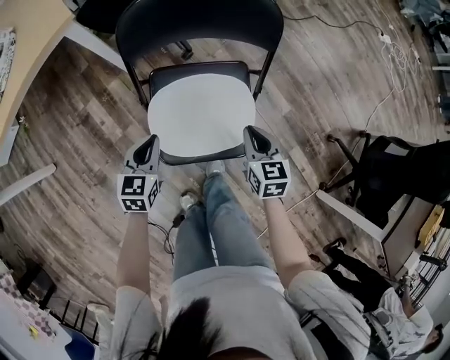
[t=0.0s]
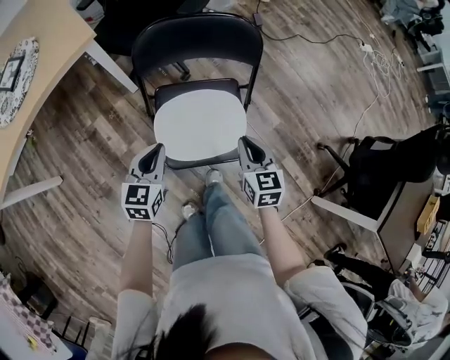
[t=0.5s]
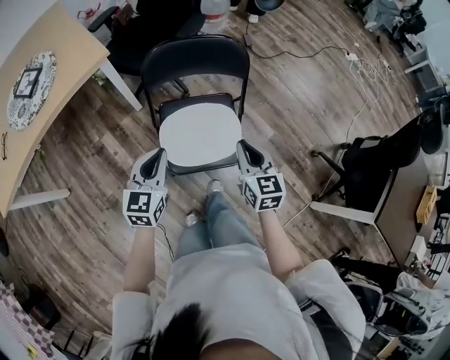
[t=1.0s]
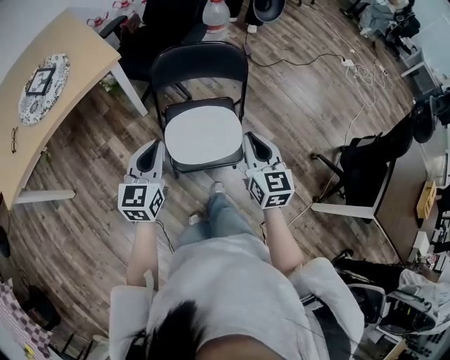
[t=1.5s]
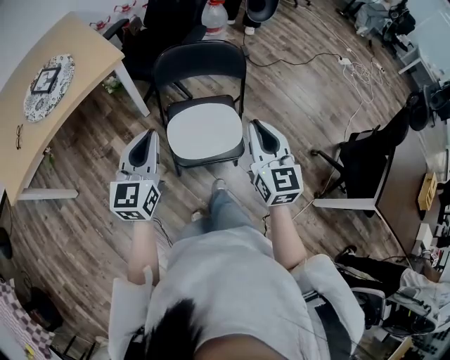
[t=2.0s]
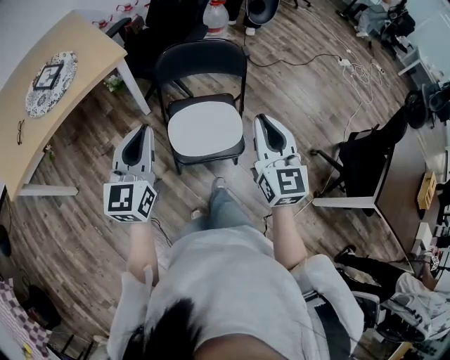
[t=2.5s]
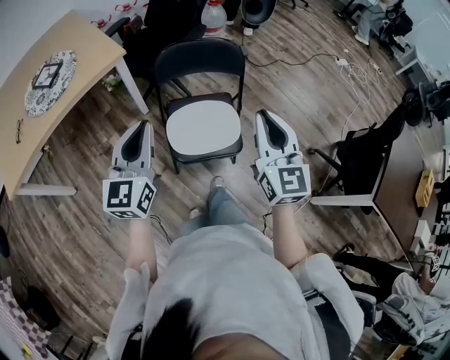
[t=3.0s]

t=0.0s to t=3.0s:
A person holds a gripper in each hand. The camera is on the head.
t=0.0s to t=1.5s: Both grippers move upward, some 30 cm. The left gripper turns by roughly 20 degrees; the right gripper changes its angle by approximately 20 degrees.
t=1.5s to t=3.0s: Both grippers travel together upward and backward, about 15 cm.

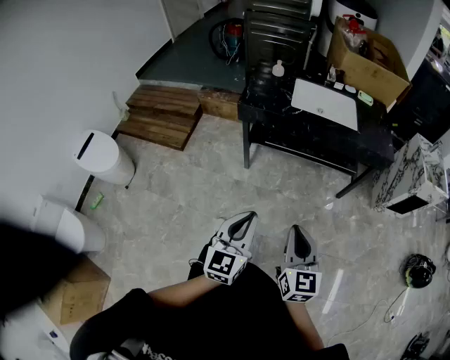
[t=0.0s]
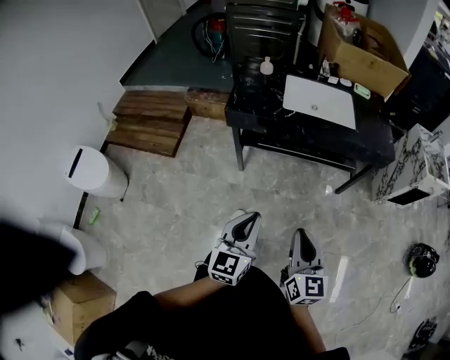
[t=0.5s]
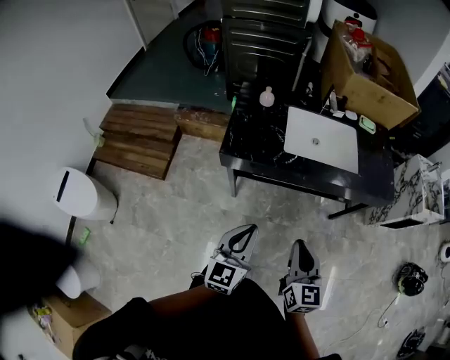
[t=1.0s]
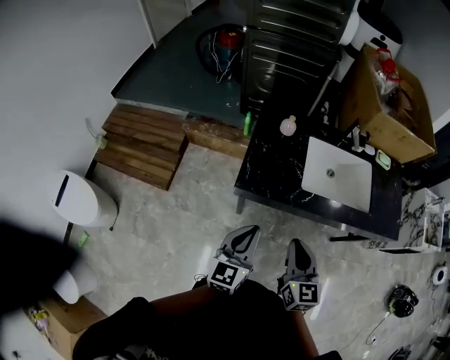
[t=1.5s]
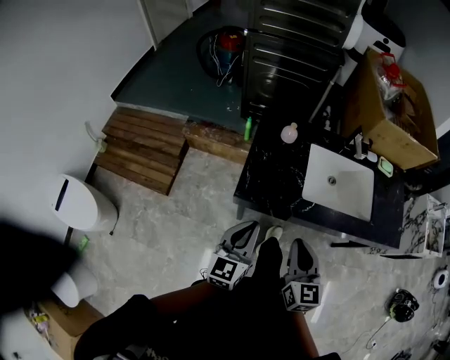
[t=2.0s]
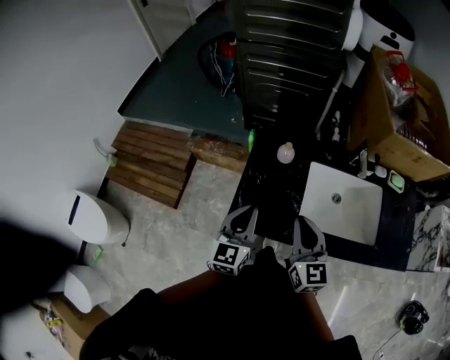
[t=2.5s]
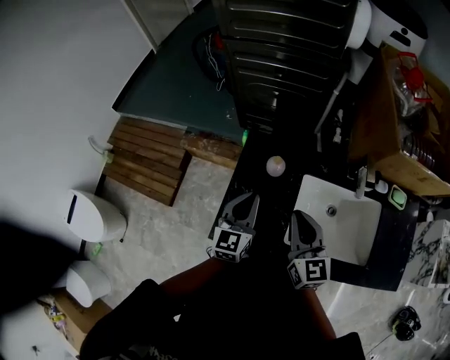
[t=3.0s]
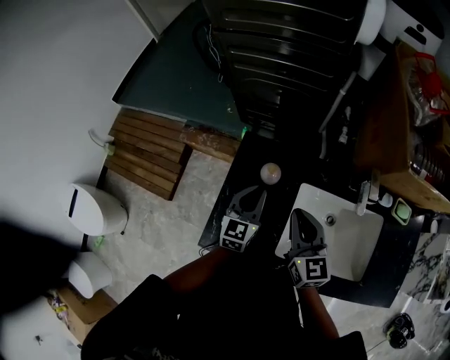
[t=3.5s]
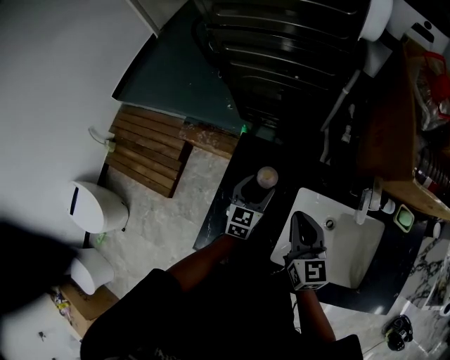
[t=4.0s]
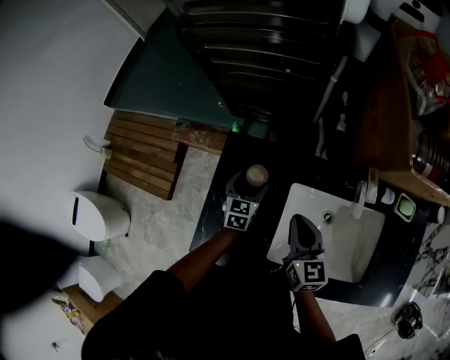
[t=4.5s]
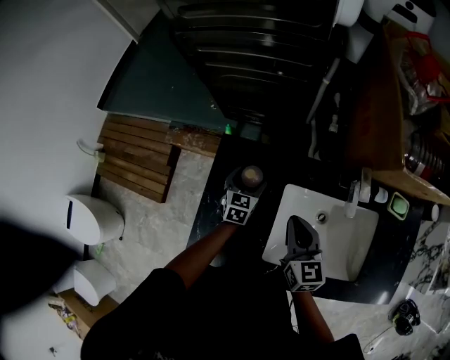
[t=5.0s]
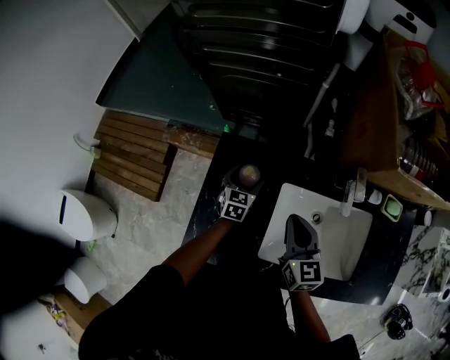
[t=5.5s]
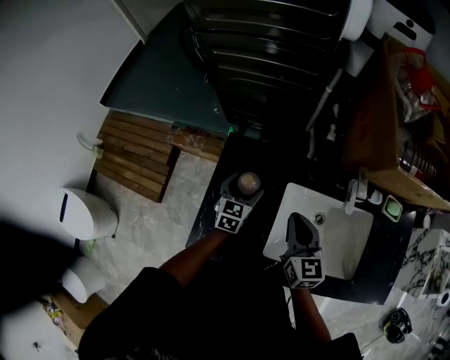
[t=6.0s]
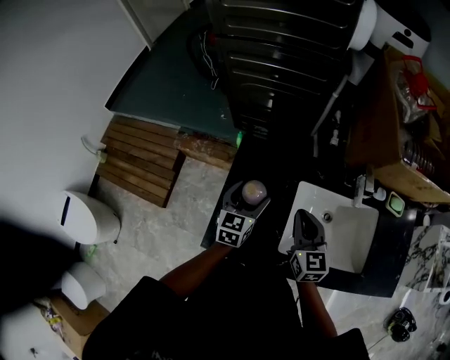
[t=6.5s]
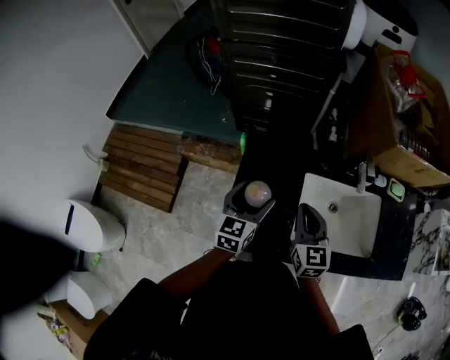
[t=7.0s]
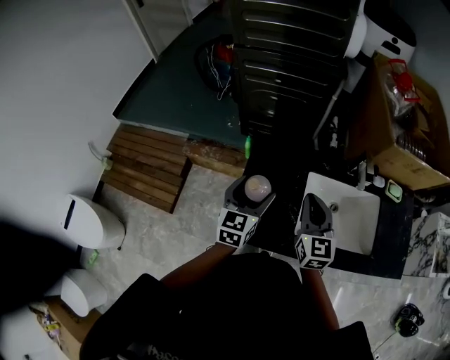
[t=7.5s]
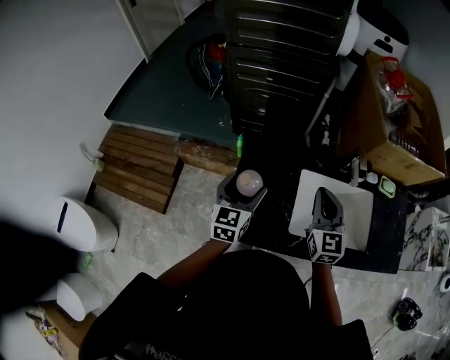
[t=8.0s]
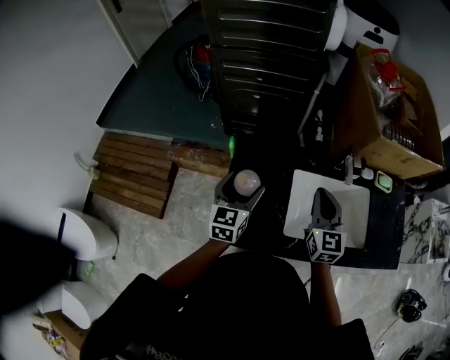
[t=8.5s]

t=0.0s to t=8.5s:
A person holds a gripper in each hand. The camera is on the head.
t=0.0s to t=2.0s: The pair of grippers is taken forward, approximately 50 cm.
t=2.0s to t=4.0s: The two grippers go about 40 cm forward. The left gripper opens its fingers.
t=4.0s to t=6.5s: The left gripper shifts about 10 cm backward and upward.
t=6.5s to t=8.5s: The grippers both shift upward by about 10 cm.

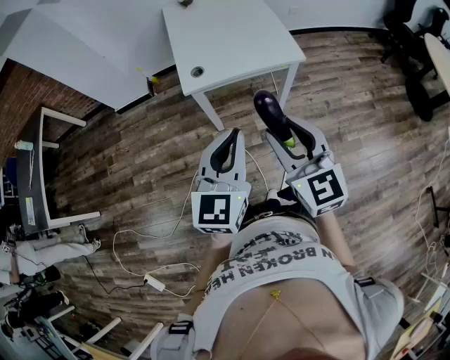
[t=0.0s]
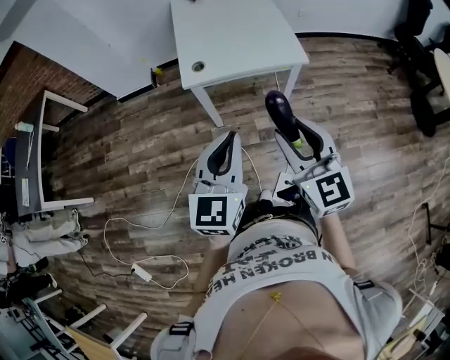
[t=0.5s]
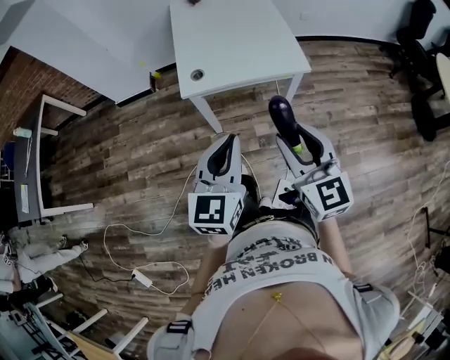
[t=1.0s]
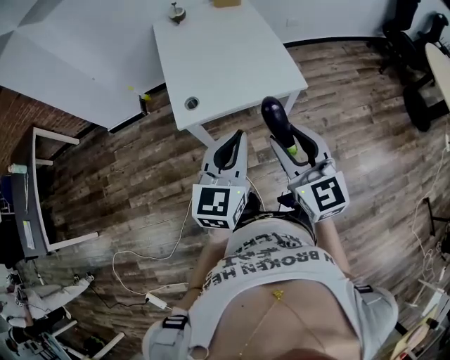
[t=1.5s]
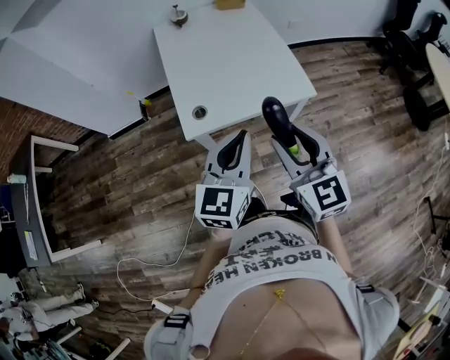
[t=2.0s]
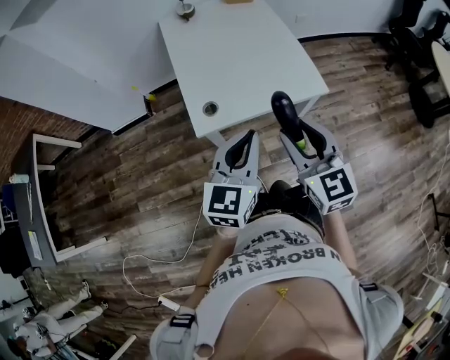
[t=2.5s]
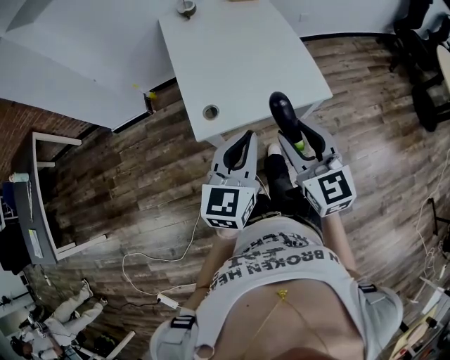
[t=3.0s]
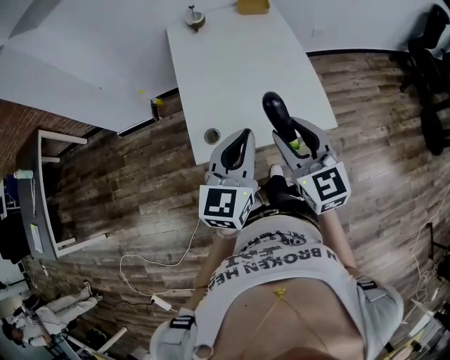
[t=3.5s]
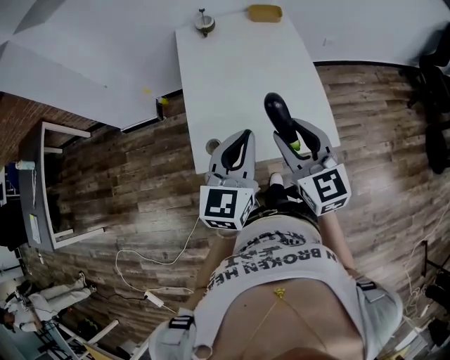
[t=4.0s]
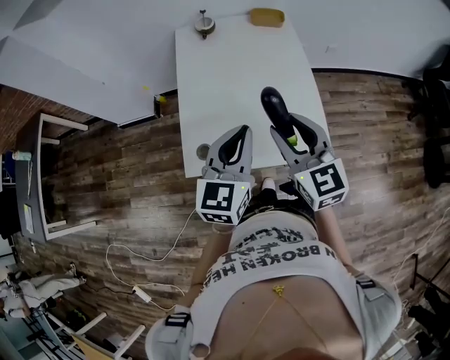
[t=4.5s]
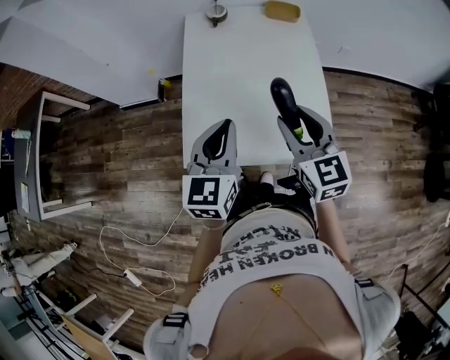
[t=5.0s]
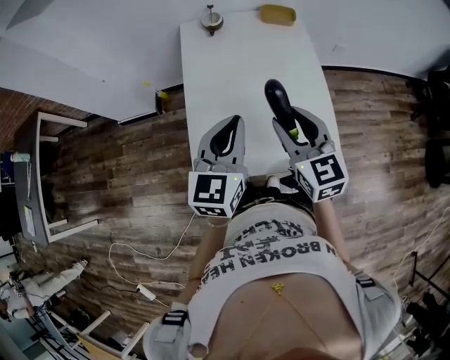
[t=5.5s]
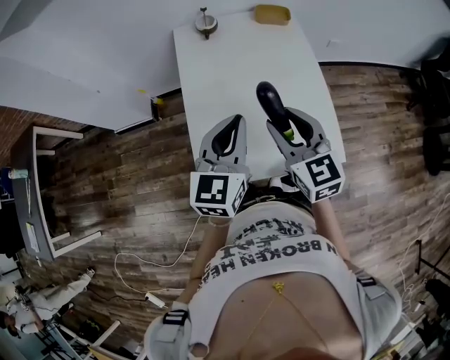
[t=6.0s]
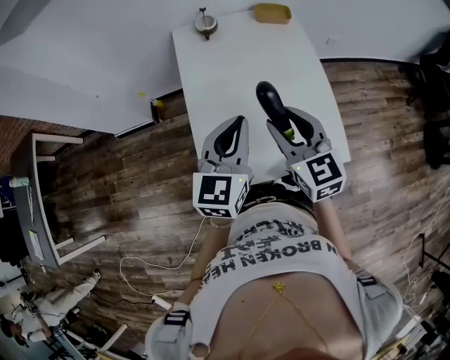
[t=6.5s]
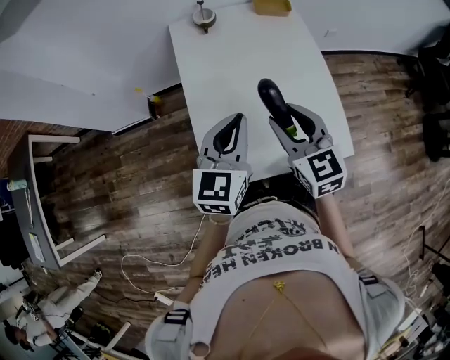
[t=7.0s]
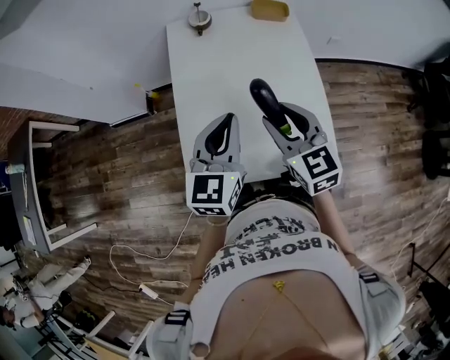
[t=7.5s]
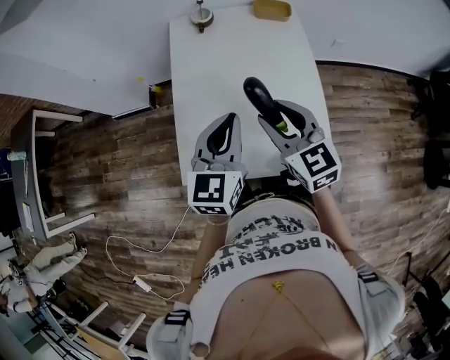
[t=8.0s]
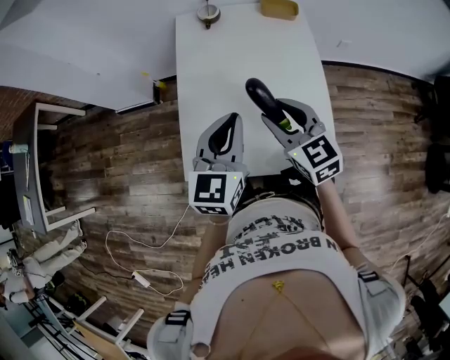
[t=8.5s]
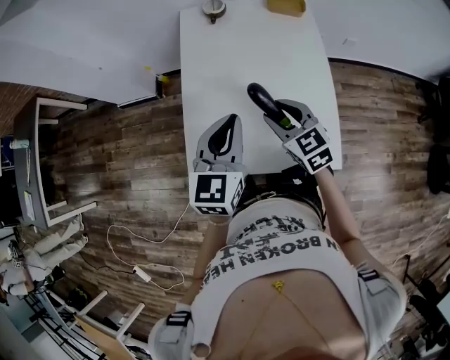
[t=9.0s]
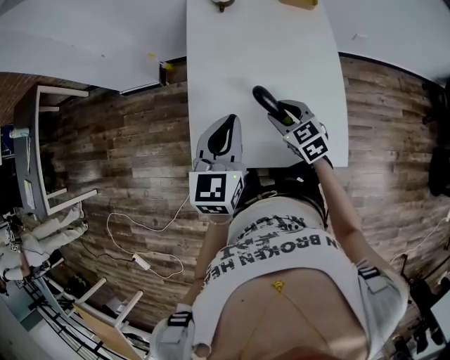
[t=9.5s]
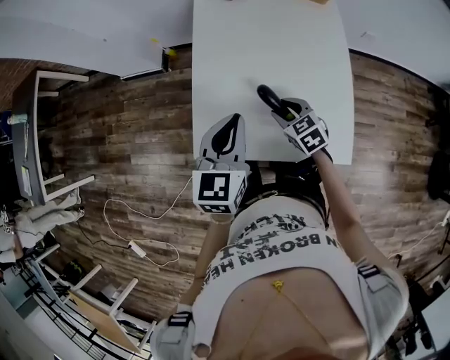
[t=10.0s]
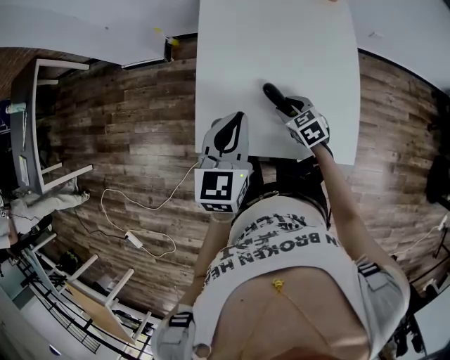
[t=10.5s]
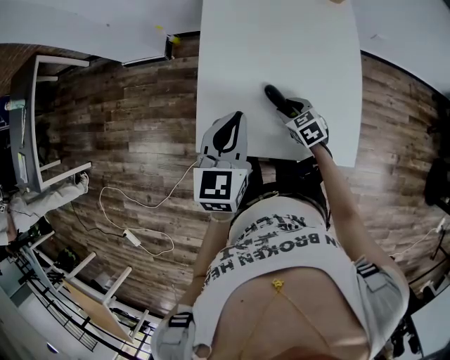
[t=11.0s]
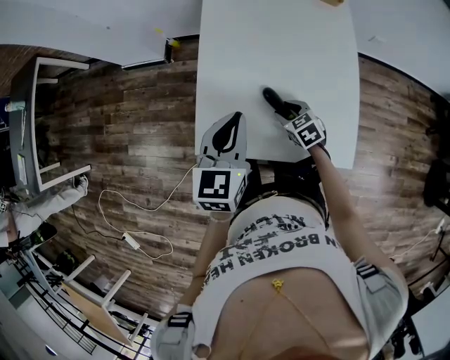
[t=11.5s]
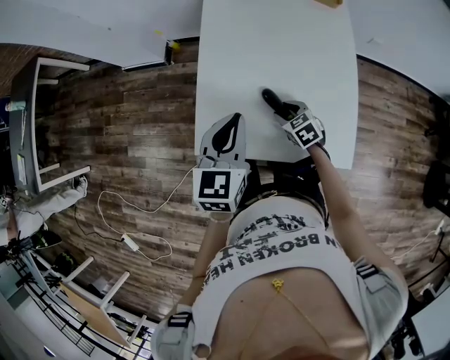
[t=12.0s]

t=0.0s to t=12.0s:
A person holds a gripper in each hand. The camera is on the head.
t=0.0s to t=2.0s: The grippers both shift forward by some 20 cm.
t=2.0s to t=4.0s: The two grippers go about 20 cm forward.
t=4.0s to t=6.0s: The grippers both shift forward by some 10 cm.
t=6.0s to t=8.0s: The right gripper shifts by about 5 cm. Meanwhile the left gripper travels to the right by roughly 5 cm.
t=8.0s to t=10.0s: The left gripper travels to the left and downward by approximately 10 cm; the right gripper is displaced downward by some 25 cm, and turns by some 30 degrees.
t=10.0s to t=12.0s: The right gripper heads downward, covering some 5 cm.

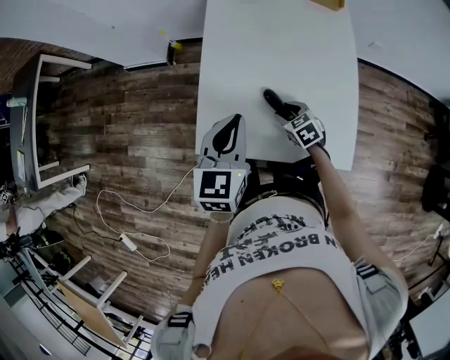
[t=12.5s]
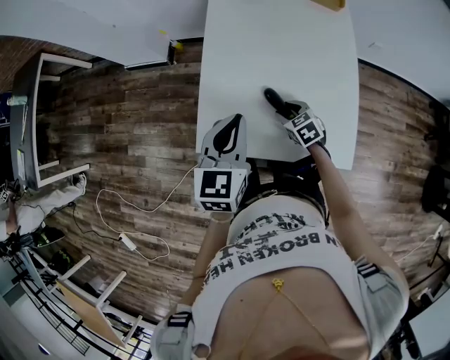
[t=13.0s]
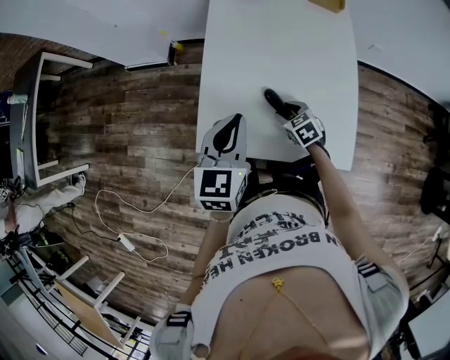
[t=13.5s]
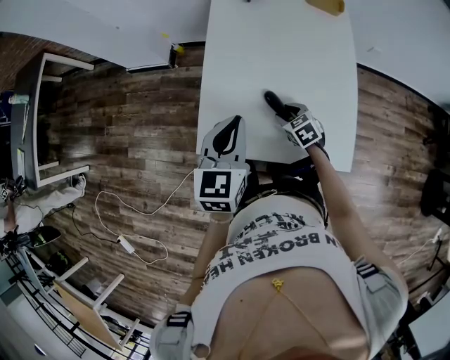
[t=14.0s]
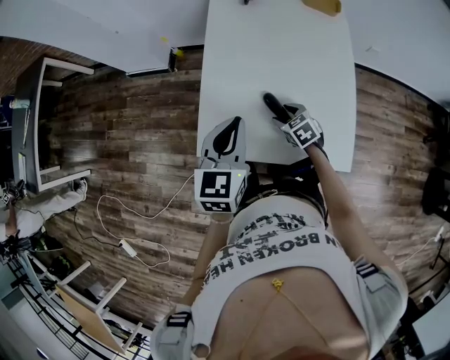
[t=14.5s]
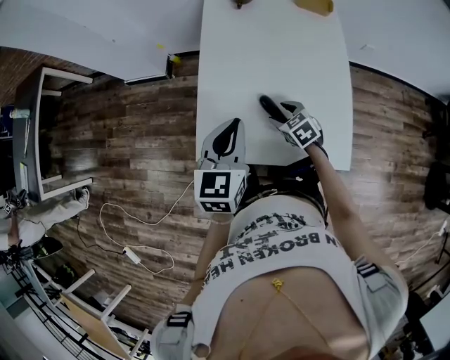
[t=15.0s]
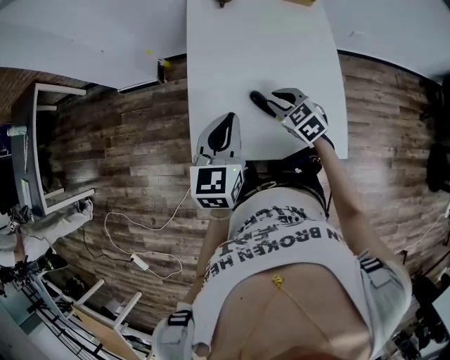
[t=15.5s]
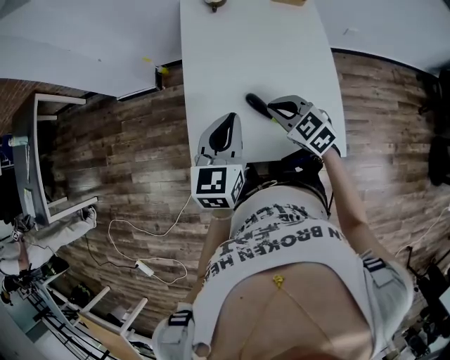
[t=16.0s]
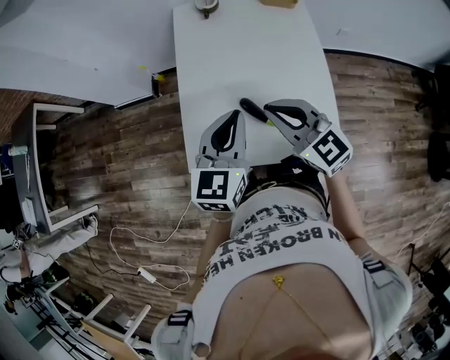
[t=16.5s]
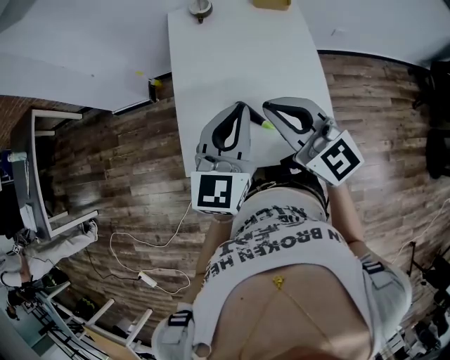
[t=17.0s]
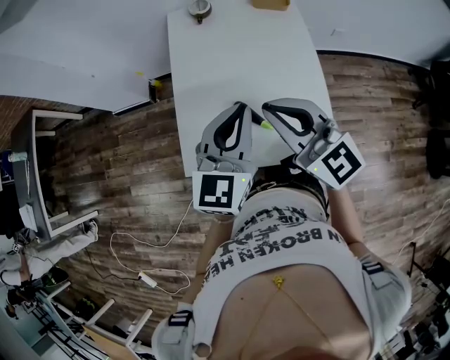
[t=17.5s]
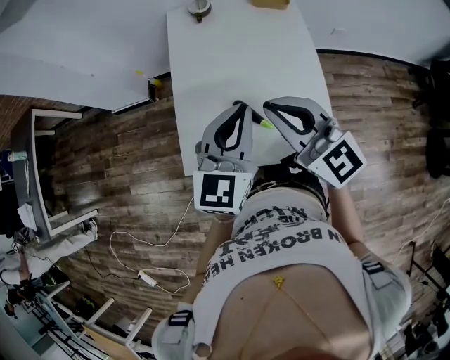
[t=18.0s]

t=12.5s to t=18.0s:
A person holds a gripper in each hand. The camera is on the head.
t=12.5s to t=14.5s: The two grippers keep their place.
t=14.5s to t=16.0s: The right gripper moves upward, some 15 cm, rotates about 20 degrees, and closes up.
t=16.0s to t=18.0s: The left gripper shifts about 10 cm upward and to the right. Meanwhile the right gripper heads upward, covering some 20 cm, and tilts its fingers some 30 degrees upward.
